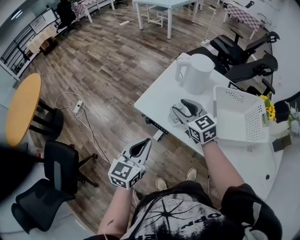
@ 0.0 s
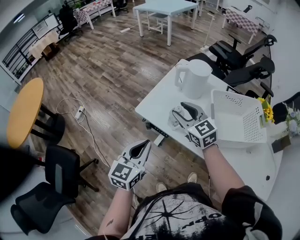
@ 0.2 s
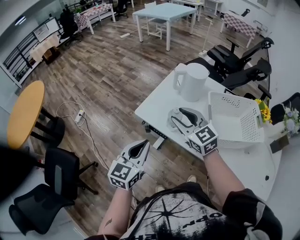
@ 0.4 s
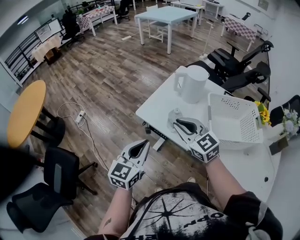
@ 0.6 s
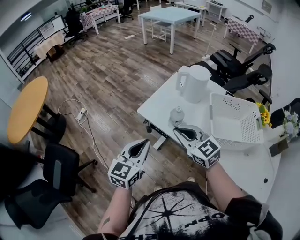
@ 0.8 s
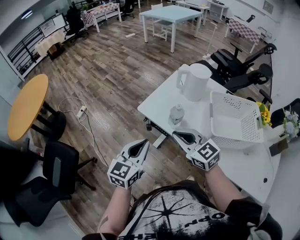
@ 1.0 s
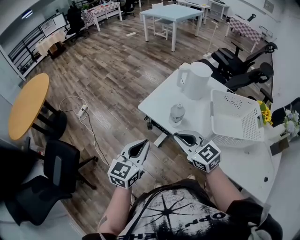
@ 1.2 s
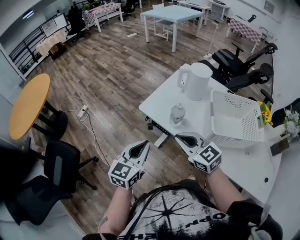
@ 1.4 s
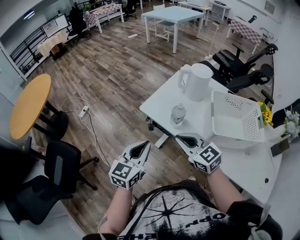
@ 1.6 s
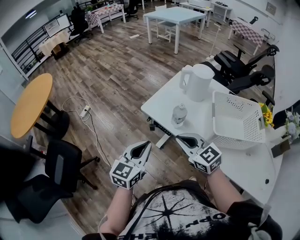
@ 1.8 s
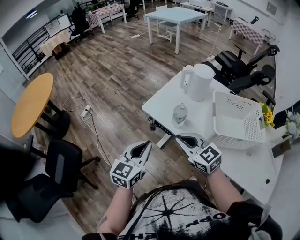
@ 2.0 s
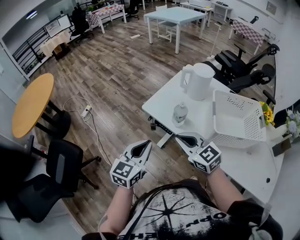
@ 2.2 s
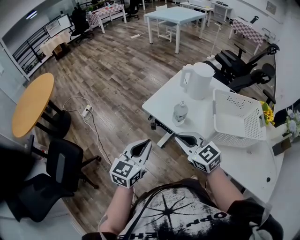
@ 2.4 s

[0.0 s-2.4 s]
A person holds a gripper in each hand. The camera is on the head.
0.0 to 1.2 s: The right gripper goes roughly 15 cm backward, and closes up.
1.2 to 2.4 s: The grippers move only a little.

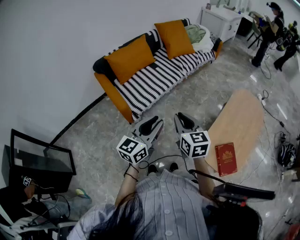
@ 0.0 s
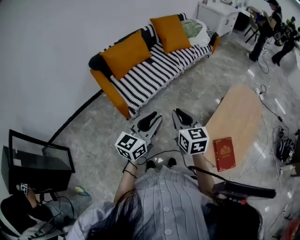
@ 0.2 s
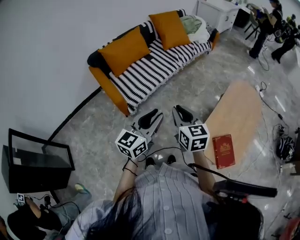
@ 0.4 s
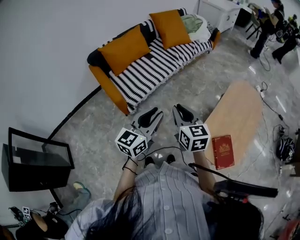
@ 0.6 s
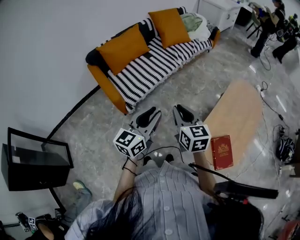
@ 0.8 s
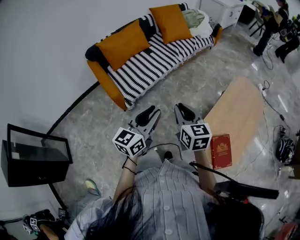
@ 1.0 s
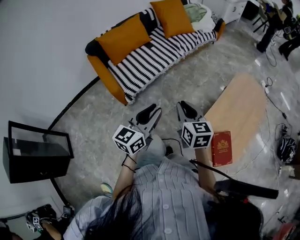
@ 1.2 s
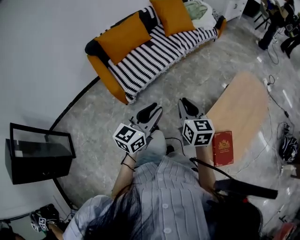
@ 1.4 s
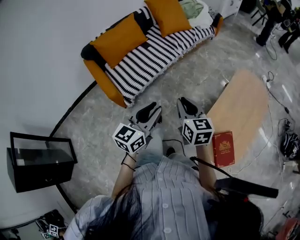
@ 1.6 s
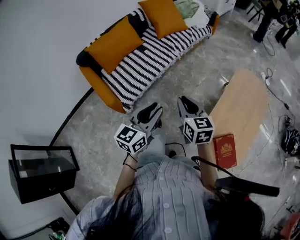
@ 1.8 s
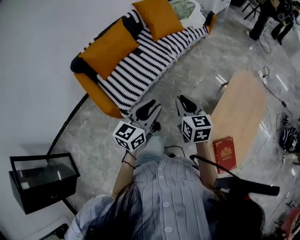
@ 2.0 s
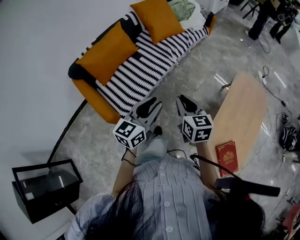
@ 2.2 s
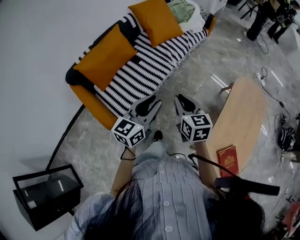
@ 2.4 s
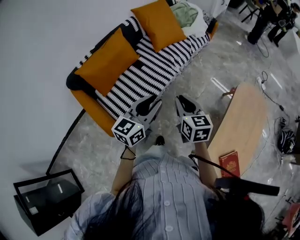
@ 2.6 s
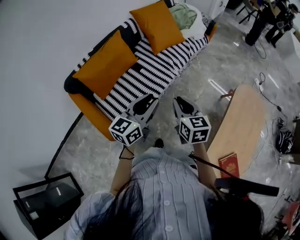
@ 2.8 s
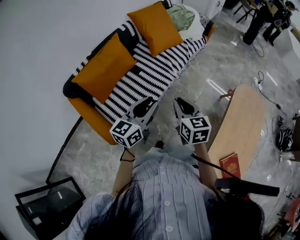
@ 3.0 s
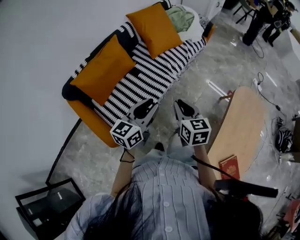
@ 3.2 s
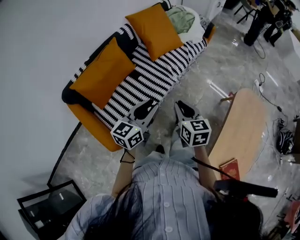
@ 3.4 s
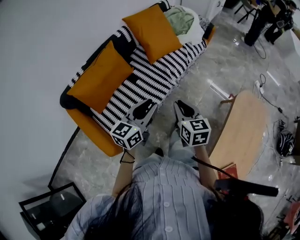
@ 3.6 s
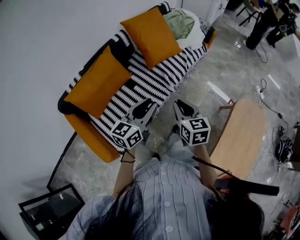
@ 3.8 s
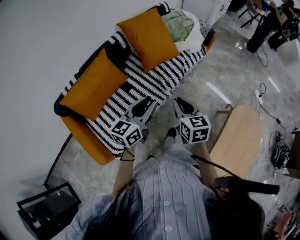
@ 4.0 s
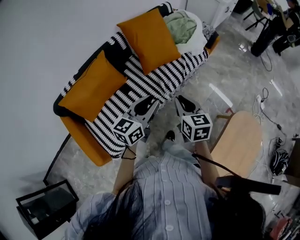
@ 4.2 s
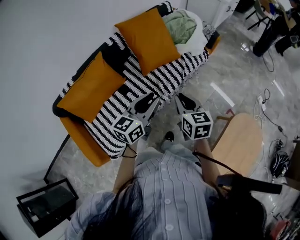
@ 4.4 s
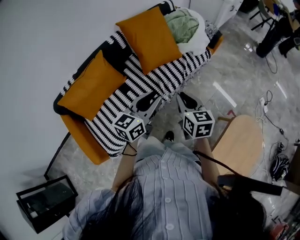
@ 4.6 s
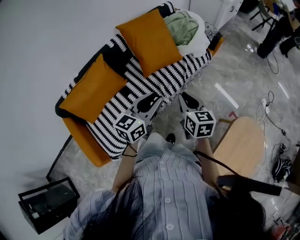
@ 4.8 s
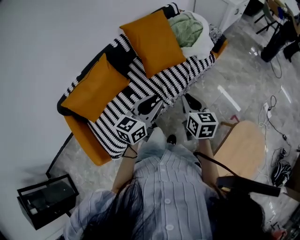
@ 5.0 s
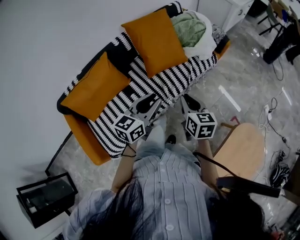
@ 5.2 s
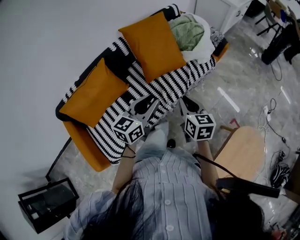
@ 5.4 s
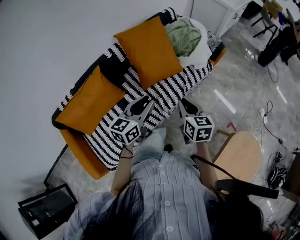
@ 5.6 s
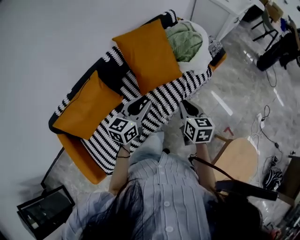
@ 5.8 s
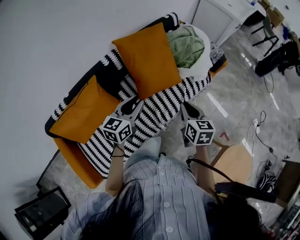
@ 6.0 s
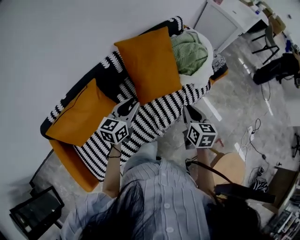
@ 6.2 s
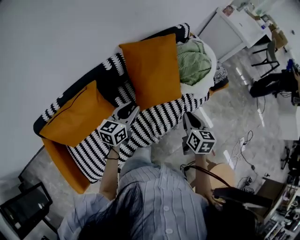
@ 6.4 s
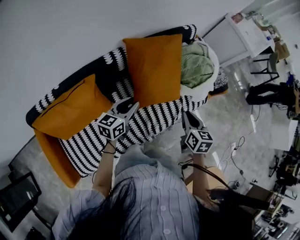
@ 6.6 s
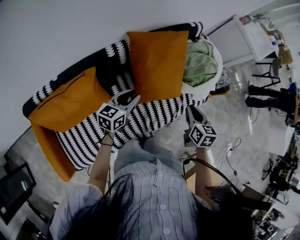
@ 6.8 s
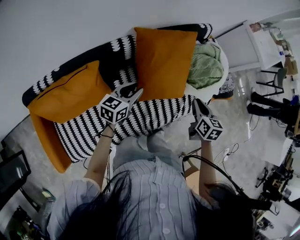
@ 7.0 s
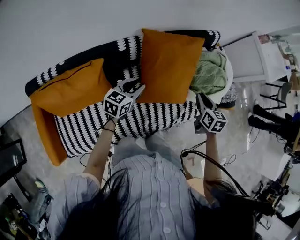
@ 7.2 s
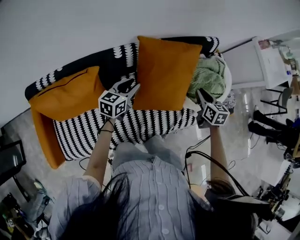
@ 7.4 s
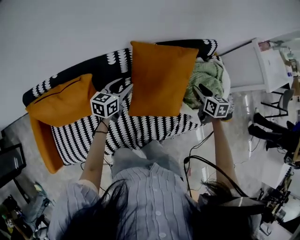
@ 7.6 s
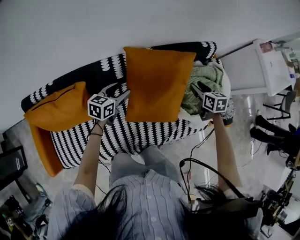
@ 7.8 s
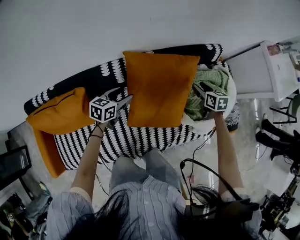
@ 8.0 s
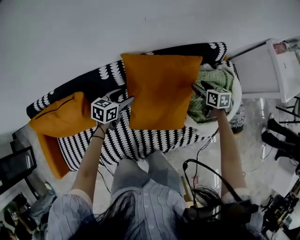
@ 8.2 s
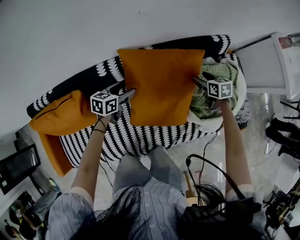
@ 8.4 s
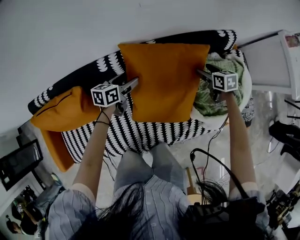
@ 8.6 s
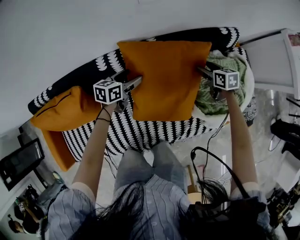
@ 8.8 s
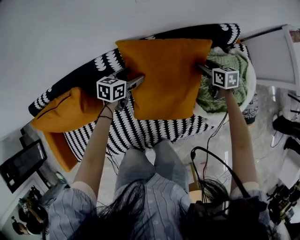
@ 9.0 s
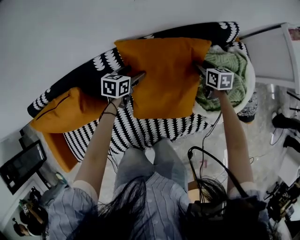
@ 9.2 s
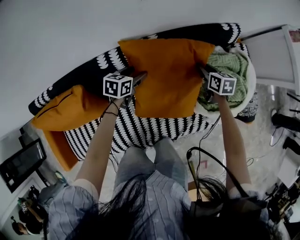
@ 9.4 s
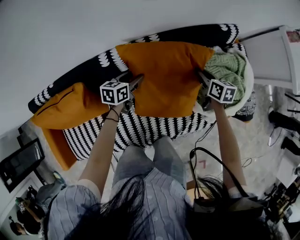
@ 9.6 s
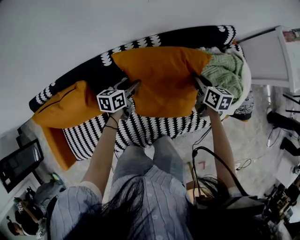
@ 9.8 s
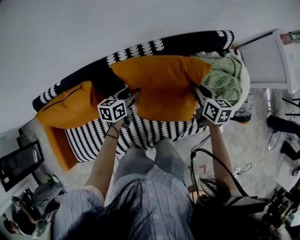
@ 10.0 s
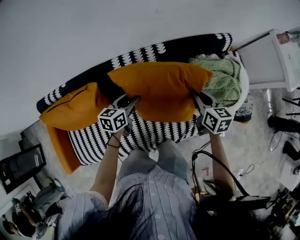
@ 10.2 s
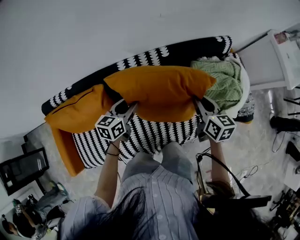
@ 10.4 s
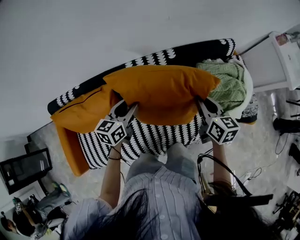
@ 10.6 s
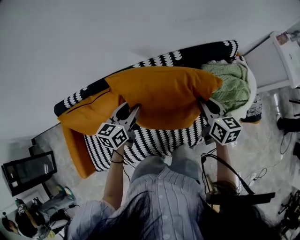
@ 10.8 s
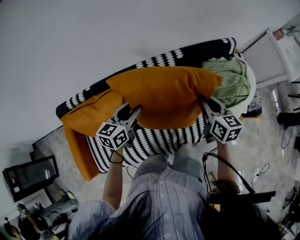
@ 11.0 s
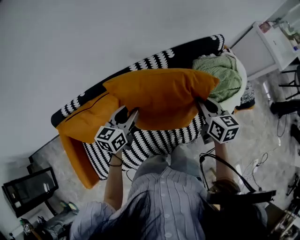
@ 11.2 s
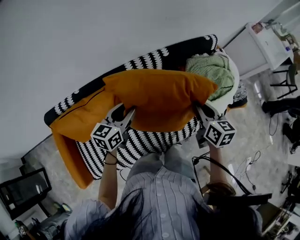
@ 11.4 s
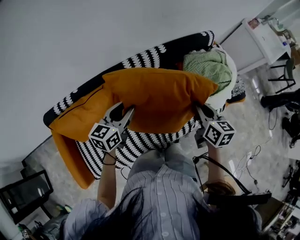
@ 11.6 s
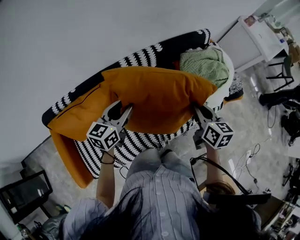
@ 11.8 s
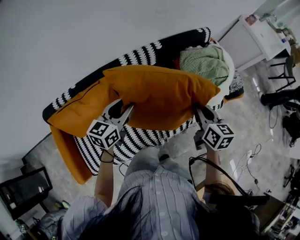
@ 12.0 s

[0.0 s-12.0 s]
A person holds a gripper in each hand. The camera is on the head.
0.0 to 1.6 s: The left gripper is displaced forward and to the right by approximately 10 cm. The right gripper shifts about 15 cm forward, to the right and downward.
1.6 to 3.0 s: The two grippers go approximately 35 cm forward and to the left.
3.0 to 4.4 s: The two grippers go roughly 30 cm forward.
4.4 to 6.0 s: The right gripper goes about 25 cm forward. Meanwhile the left gripper is displaced forward and to the left by about 25 cm.
6.0 to 7.6 s: The left gripper is displaced forward, to the left and downward by about 30 cm, and changes its angle by approximately 20 degrees; the right gripper heads forward, covering approximately 40 cm, and swivels approximately 30 degrees.
7.6 to 9.0 s: The left gripper is displaced downward, forward and to the right by approximately 20 cm, and opens its fingers; the right gripper shifts some 25 cm forward and downward.
9.0 to 10.4 s: The grippers both shift backward, upward and to the left by approximately 25 cm. The left gripper closes up, while the right gripper swivels approximately 20 degrees, and closes its fingers.
10.4 to 12.0 s: The left gripper shifts roughly 20 cm backward and upward. The right gripper goes some 20 cm backward.

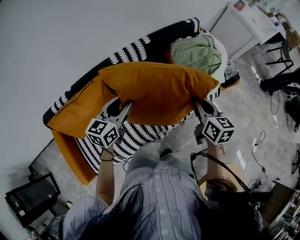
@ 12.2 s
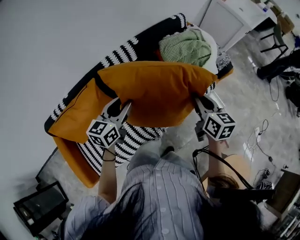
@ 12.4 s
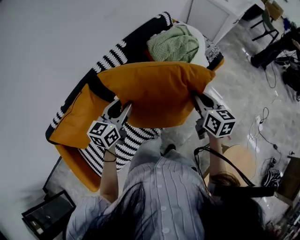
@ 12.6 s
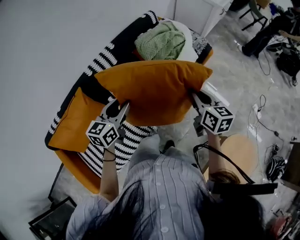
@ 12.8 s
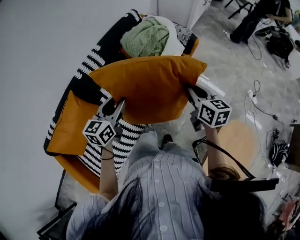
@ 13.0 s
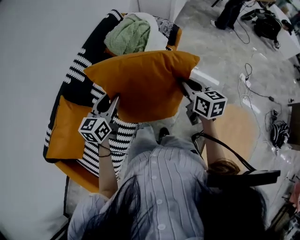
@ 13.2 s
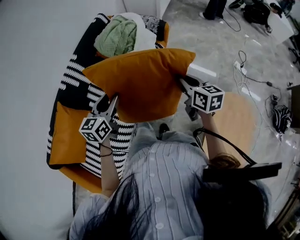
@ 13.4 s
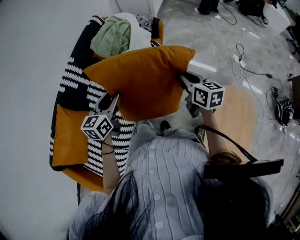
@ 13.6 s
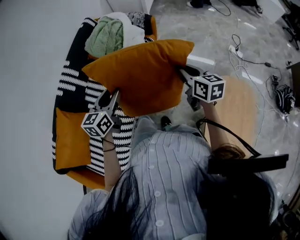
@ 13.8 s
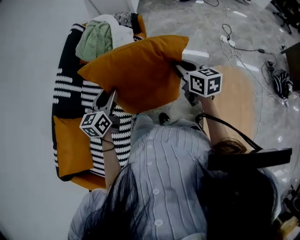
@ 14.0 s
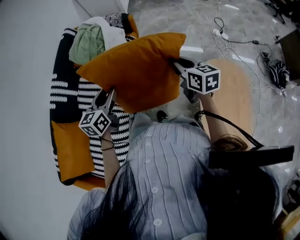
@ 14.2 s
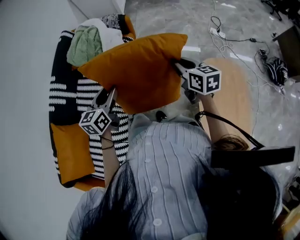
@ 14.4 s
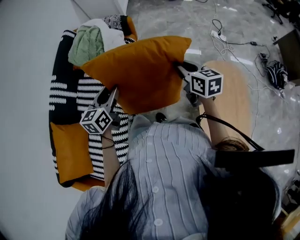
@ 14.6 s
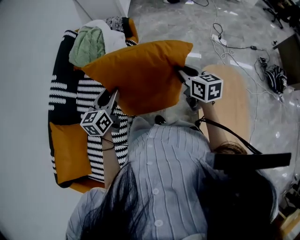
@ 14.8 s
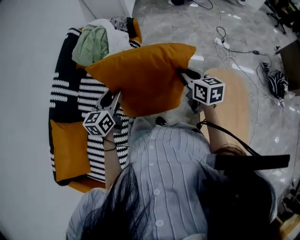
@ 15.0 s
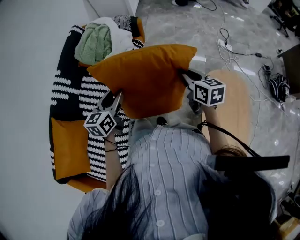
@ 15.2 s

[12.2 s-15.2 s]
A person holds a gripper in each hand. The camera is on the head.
12.2 to 13.8 s: The left gripper shifts by roughly 35 cm, and changes its angle by some 30 degrees, while the right gripper shifts by roughly 40 cm, and changes its angle by about 30 degrees.
13.8 to 15.2 s: The left gripper shifts by about 5 cm; the right gripper shifts approximately 5 cm to the right.

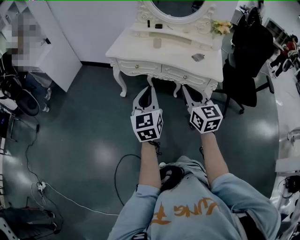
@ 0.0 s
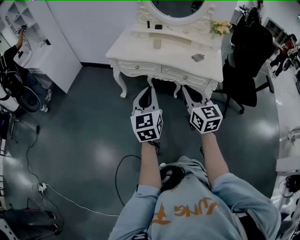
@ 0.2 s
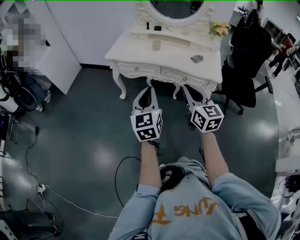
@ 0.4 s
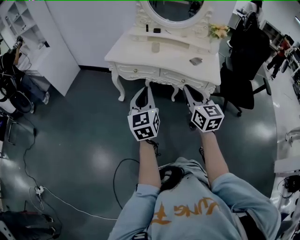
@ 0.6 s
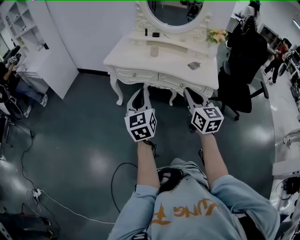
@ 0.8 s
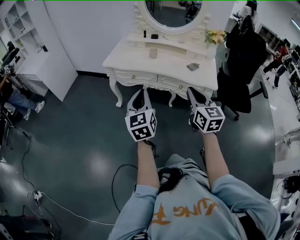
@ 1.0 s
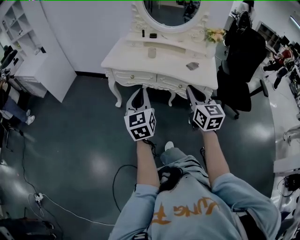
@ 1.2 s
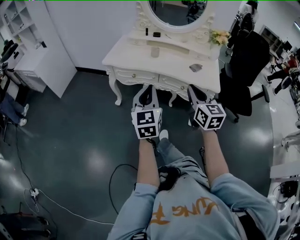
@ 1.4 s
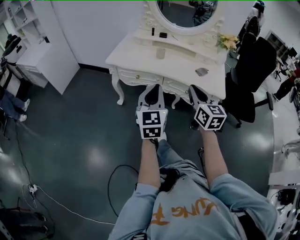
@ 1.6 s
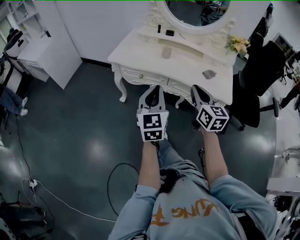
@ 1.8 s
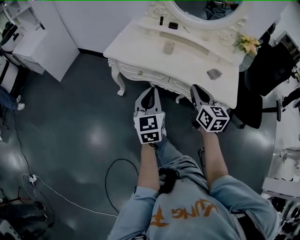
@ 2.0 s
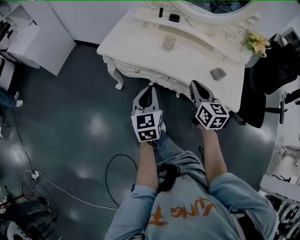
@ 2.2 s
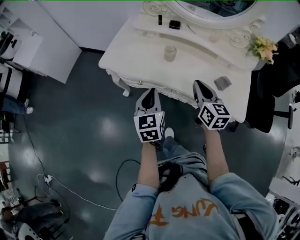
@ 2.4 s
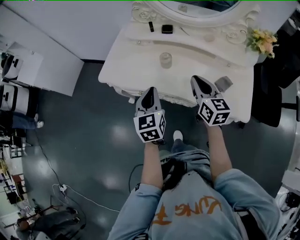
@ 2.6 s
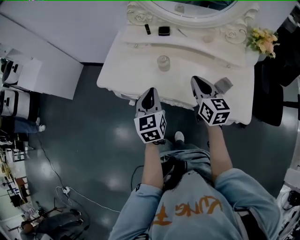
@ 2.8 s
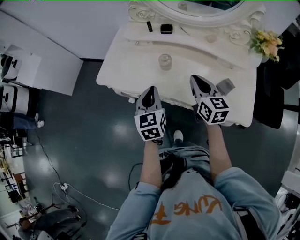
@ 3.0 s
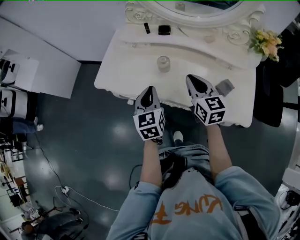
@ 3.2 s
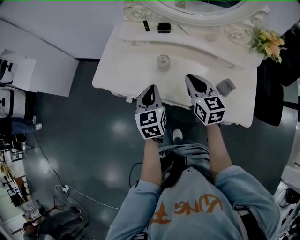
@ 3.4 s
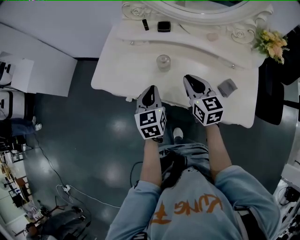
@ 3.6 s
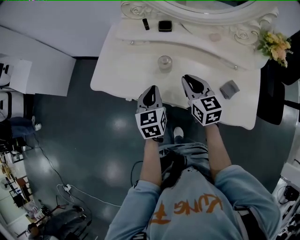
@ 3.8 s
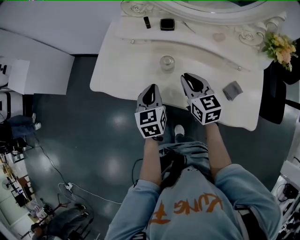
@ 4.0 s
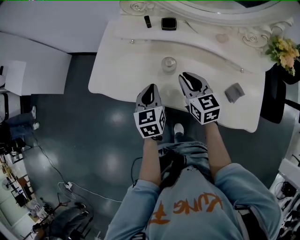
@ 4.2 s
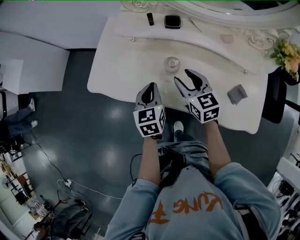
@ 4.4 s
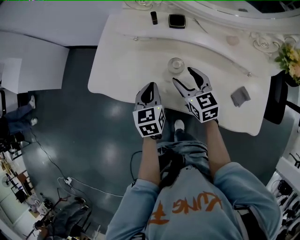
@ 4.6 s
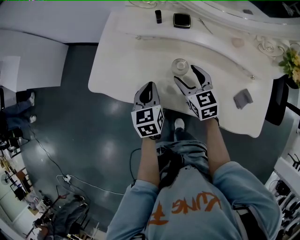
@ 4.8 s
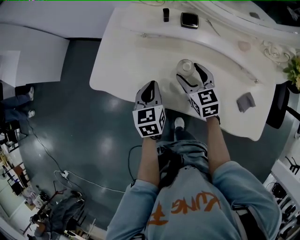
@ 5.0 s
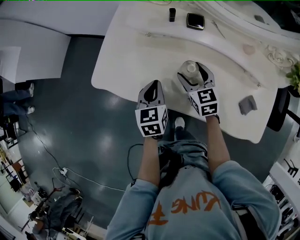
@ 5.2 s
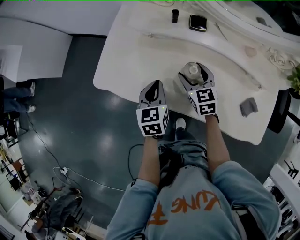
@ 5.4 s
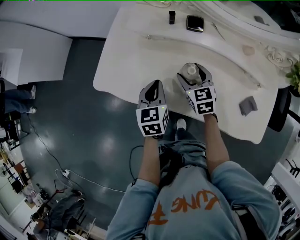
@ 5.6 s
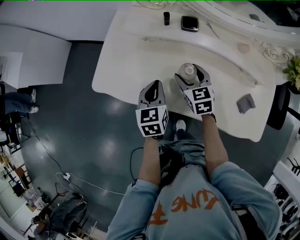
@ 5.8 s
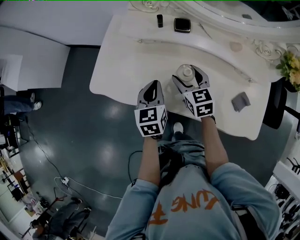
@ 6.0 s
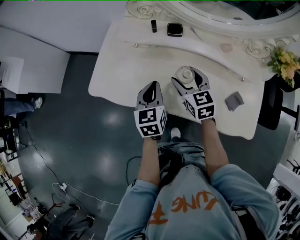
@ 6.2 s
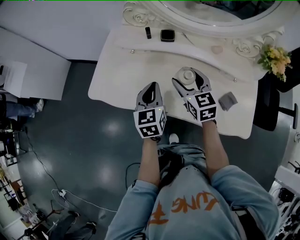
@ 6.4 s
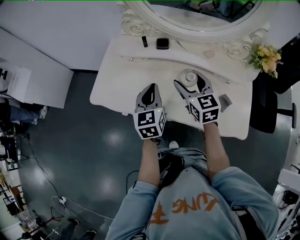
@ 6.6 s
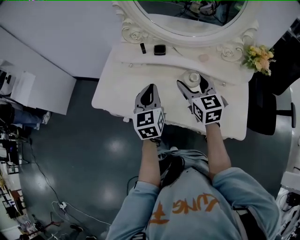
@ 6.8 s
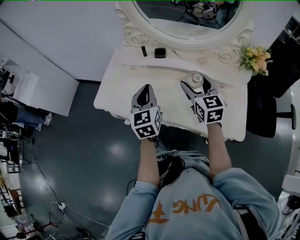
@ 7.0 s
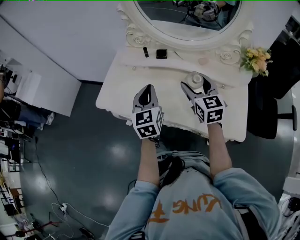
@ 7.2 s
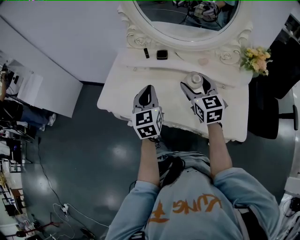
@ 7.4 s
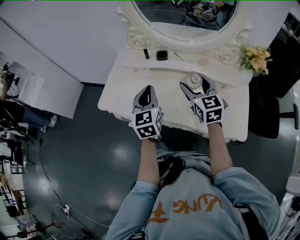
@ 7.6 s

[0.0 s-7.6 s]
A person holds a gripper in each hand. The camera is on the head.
0.0 to 1.6 s: The grippers both shift forward by roughly 10 cm.
1.6 to 3.0 s: Both grippers travel together forward, approximately 35 cm. The left gripper rotates about 20 degrees.
3.0 to 4.6 s: The right gripper goes approximately 20 cm forward, downward and to the left, swivels approximately 20 degrees, and opens up, while the left gripper moves forward and downward, roughly 15 cm.
6.0 to 7.6 s: The left gripper shifts approximately 15 cm upward, and rotates some 20 degrees, while the right gripper heads upward, to the right and backward, covering about 20 cm.
